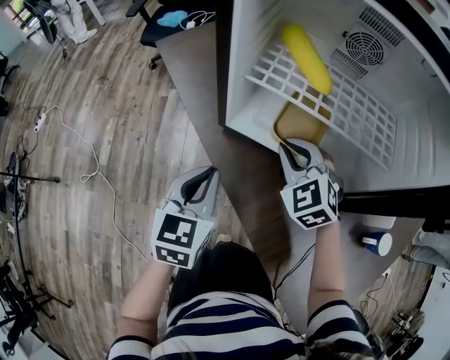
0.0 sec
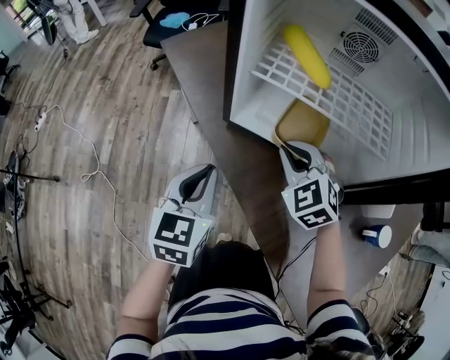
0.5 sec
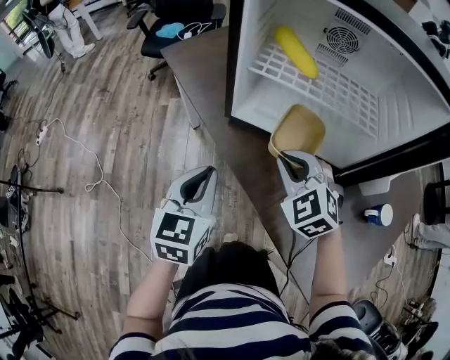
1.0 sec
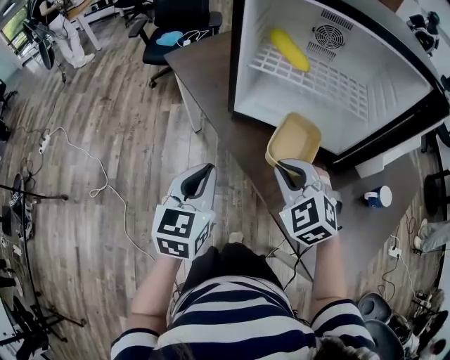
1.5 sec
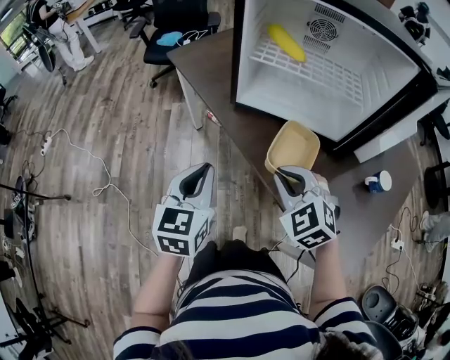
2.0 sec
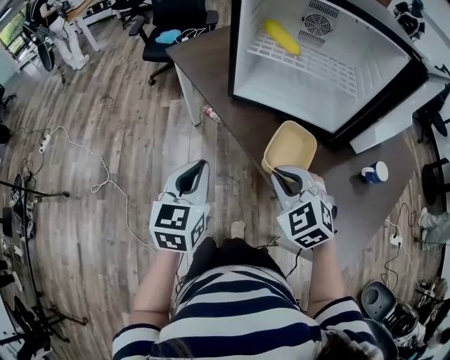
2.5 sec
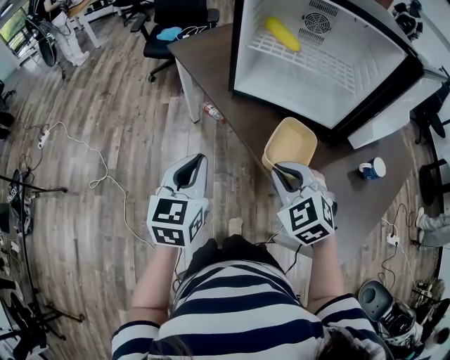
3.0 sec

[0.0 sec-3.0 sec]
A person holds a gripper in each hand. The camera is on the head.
0.0 sec to 1.5 sec: The right gripper is displaced backward by some 20 cm. Meanwhile the left gripper shifts approximately 15 cm backward, upward and to the left.
1.5 sec to 3.0 sec: The grippers both shift backward by approximately 10 cm.

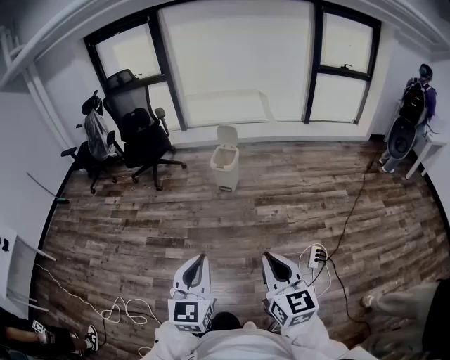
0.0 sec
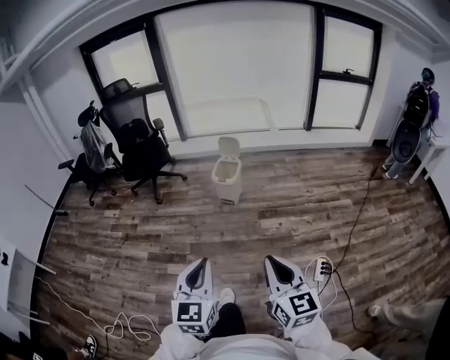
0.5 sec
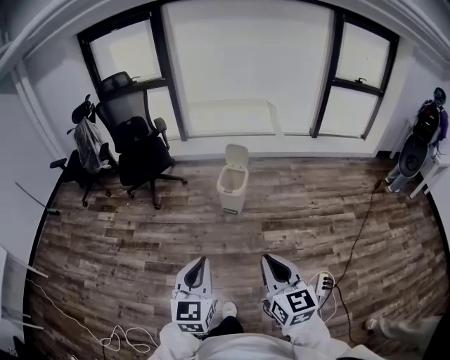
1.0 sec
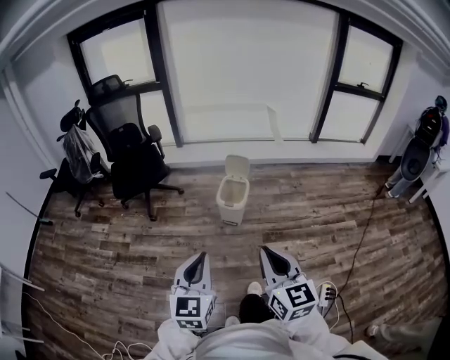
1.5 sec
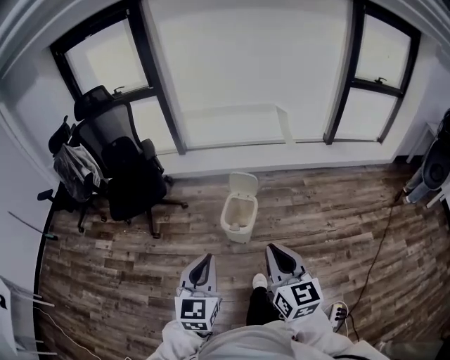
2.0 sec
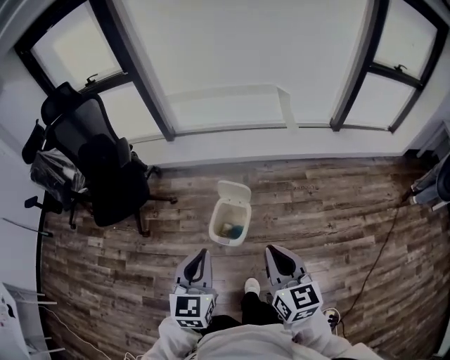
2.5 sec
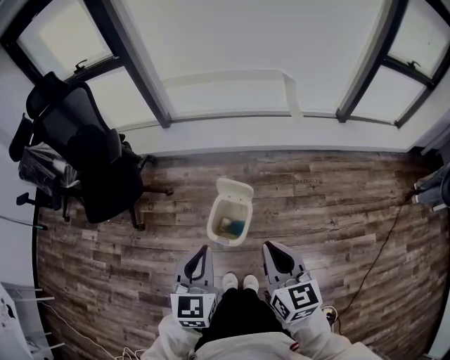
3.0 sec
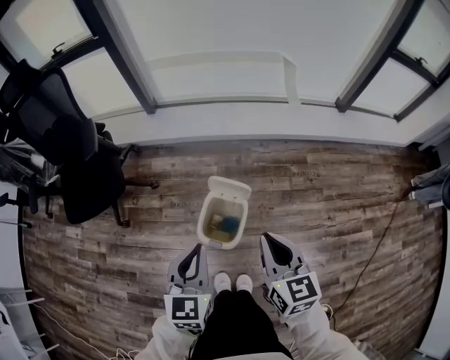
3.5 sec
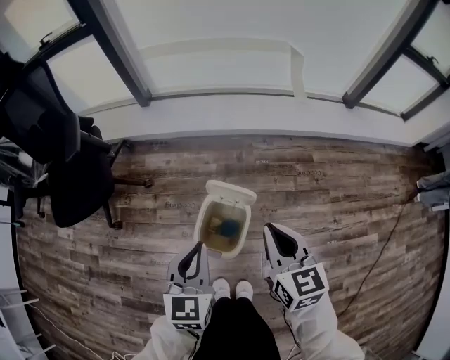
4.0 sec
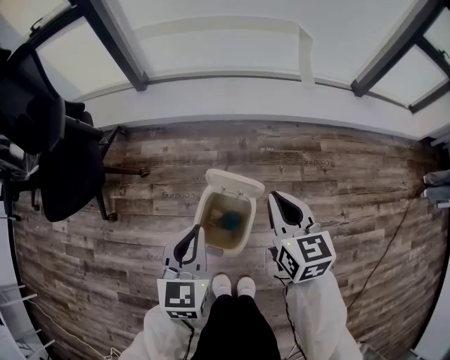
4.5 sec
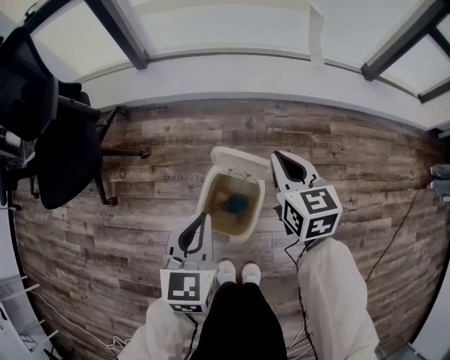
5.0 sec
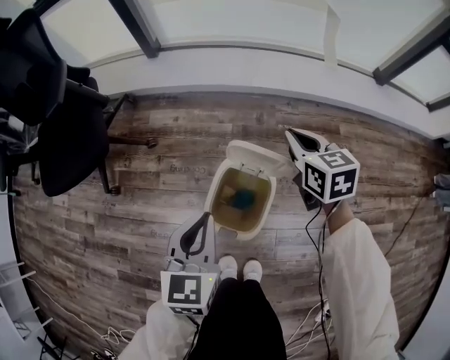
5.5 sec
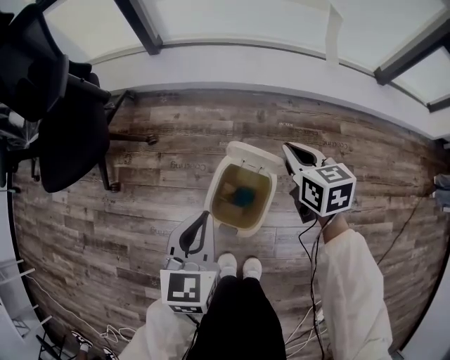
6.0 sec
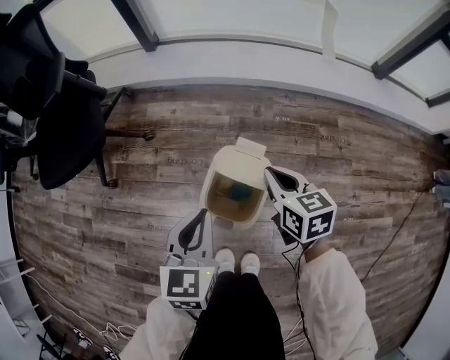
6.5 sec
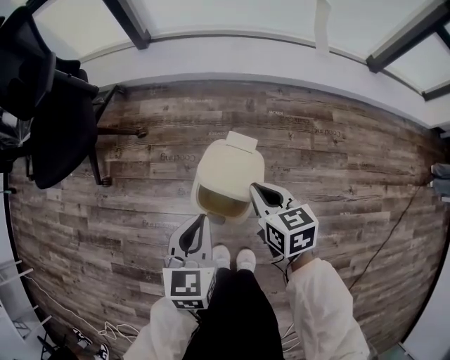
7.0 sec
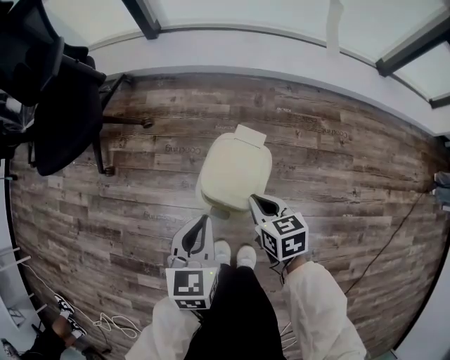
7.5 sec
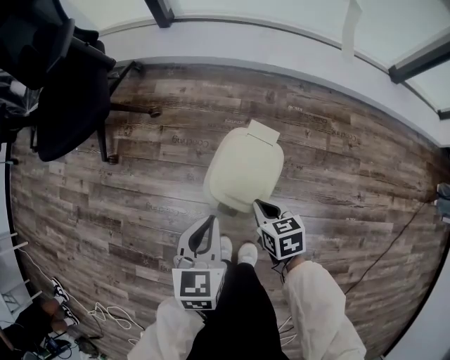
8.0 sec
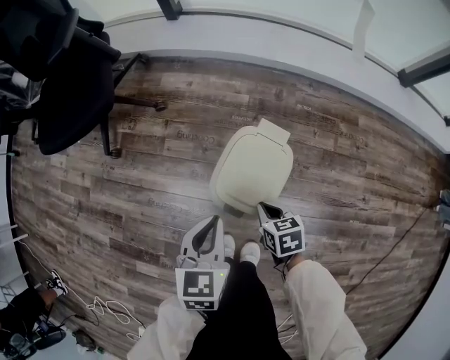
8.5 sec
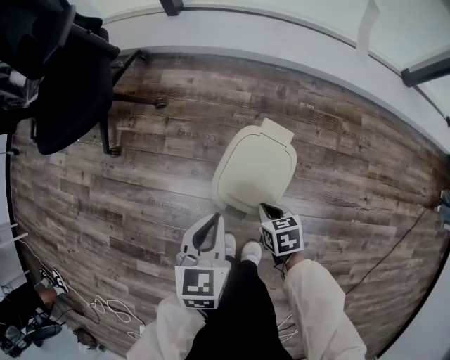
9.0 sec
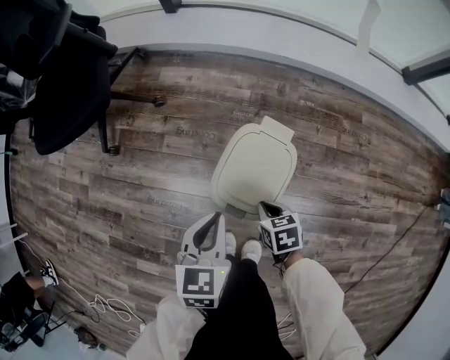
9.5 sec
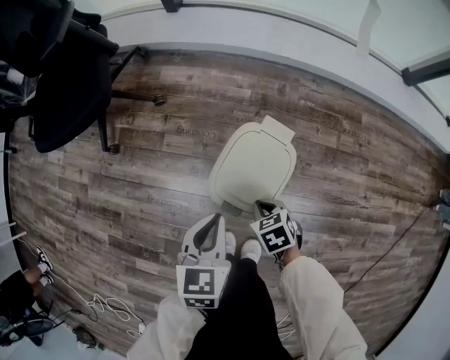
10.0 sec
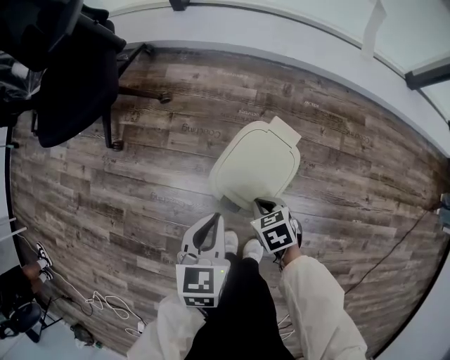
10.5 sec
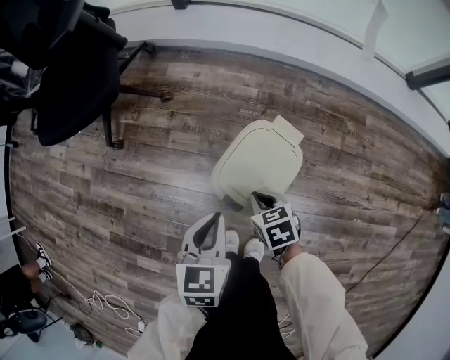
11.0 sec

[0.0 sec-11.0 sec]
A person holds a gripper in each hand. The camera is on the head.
0.0 sec to 2.0 sec: Both grippers are carried forward, about 70 cm.
2.0 sec to 3.5 sec: The grippers both shift forward and downward by approximately 40 cm.
3.5 sec to 5.5 sec: The right gripper goes roughly 35 cm forward and downward. The left gripper moves downward and forward, roughly 25 cm.
5.5 sec to 7.5 sec: The right gripper shifts about 25 cm backward, downward and to the left; the left gripper travels backward and downward by about 10 cm.
7.5 sec to 9.0 sec: The left gripper ends up approximately 5 cm from where it was, while the right gripper travels downward by some 10 cm.
9.0 sec to 11.0 sec: The right gripper ends up approximately 5 cm from where it was.

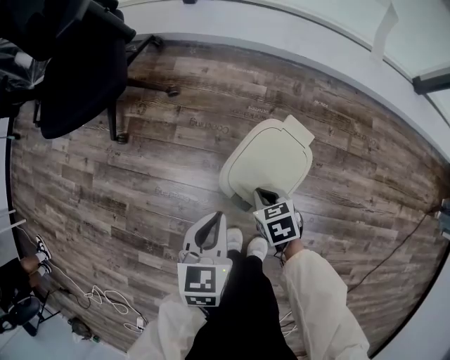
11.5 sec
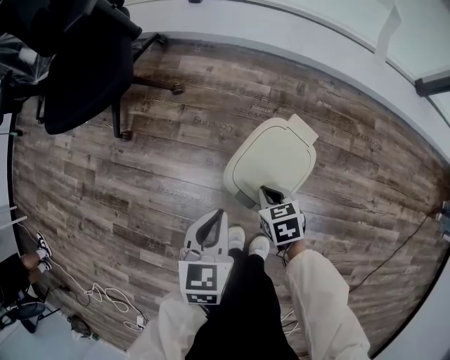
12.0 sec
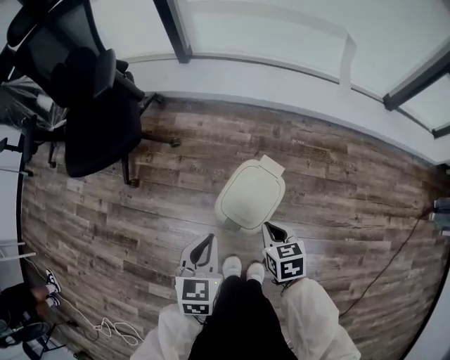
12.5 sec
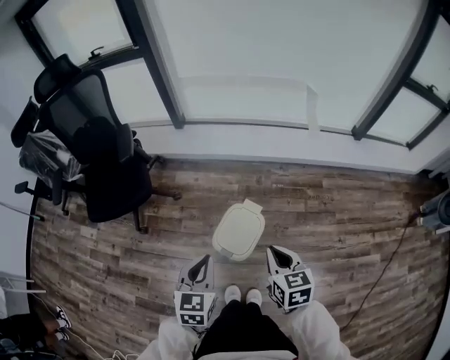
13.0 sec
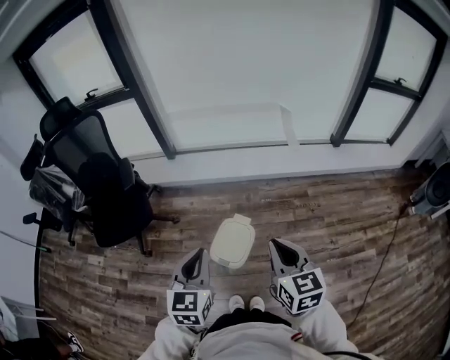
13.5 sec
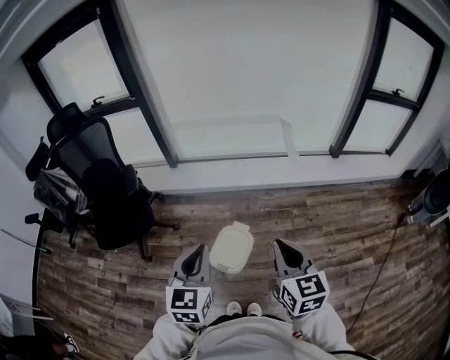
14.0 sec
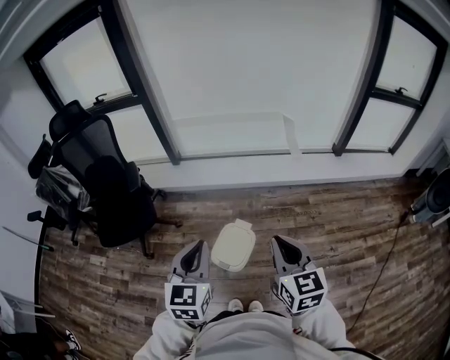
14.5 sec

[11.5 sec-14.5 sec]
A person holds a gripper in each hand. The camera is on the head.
11.5 sec to 13.0 sec: The two grippers go roughly 40 cm upward. The right gripper turns by roughly 40 degrees.
13.0 sec to 14.5 sec: The grippers both shift upward by approximately 25 cm. The right gripper swivels some 20 degrees.

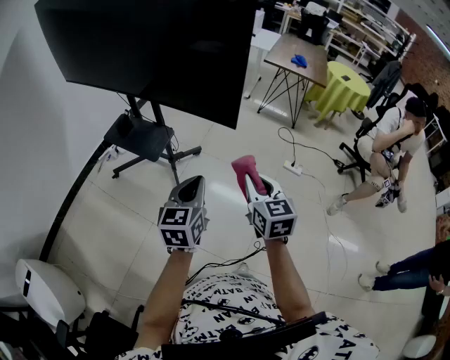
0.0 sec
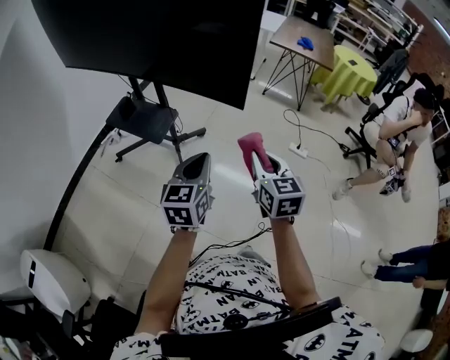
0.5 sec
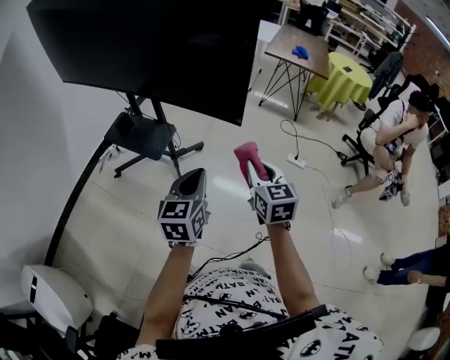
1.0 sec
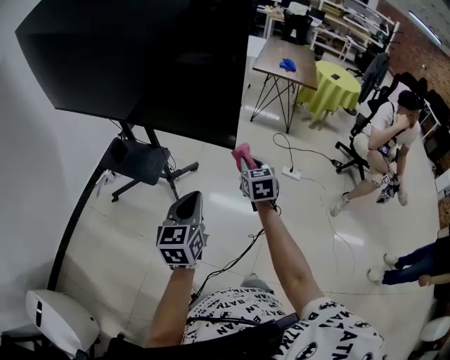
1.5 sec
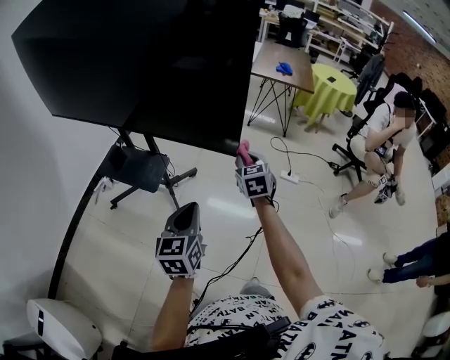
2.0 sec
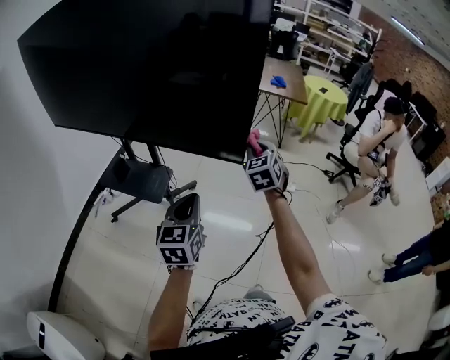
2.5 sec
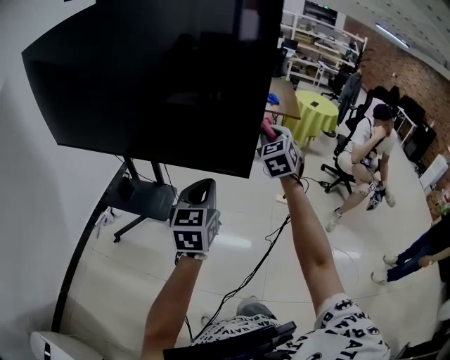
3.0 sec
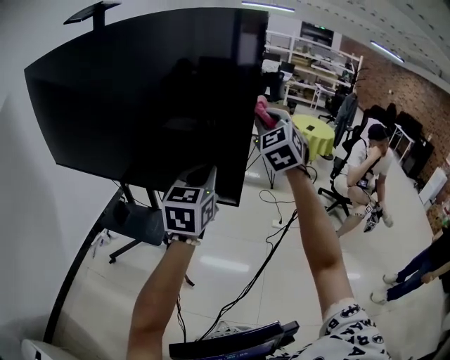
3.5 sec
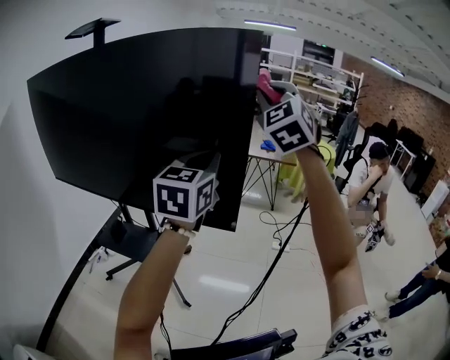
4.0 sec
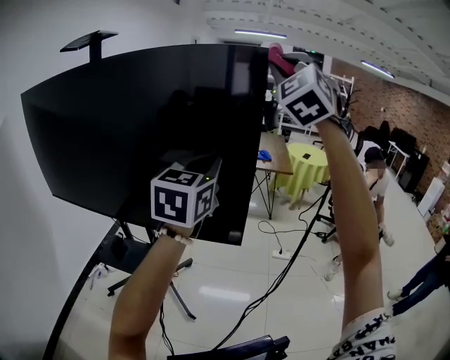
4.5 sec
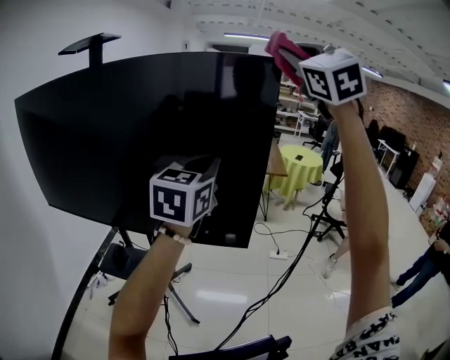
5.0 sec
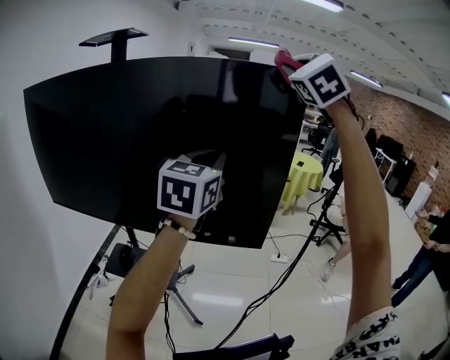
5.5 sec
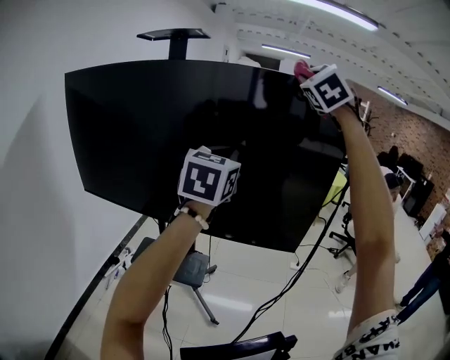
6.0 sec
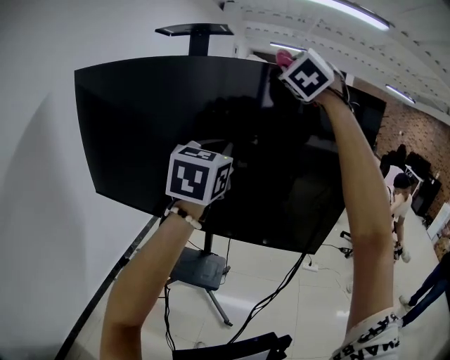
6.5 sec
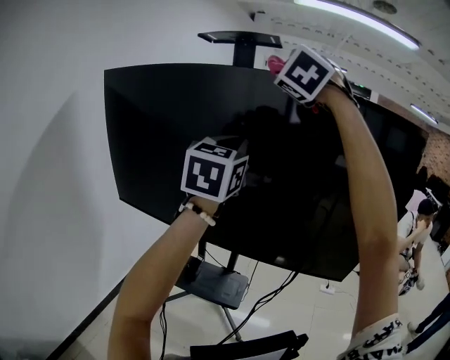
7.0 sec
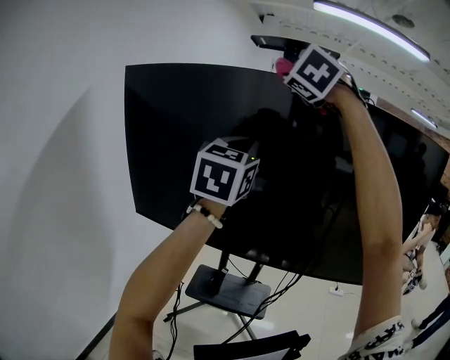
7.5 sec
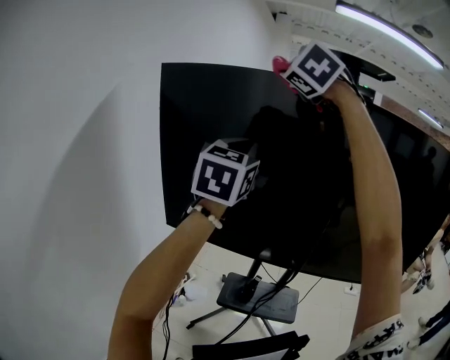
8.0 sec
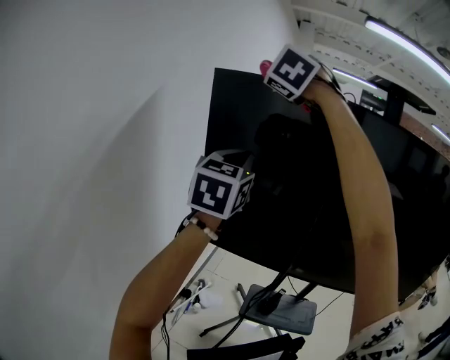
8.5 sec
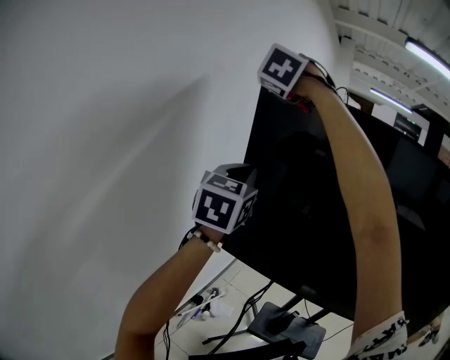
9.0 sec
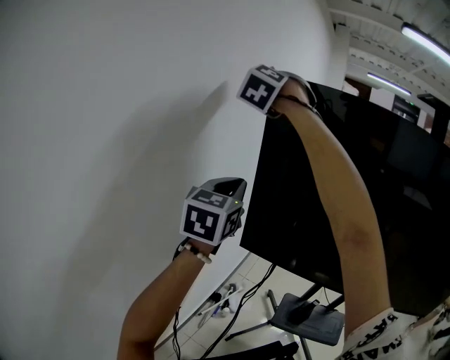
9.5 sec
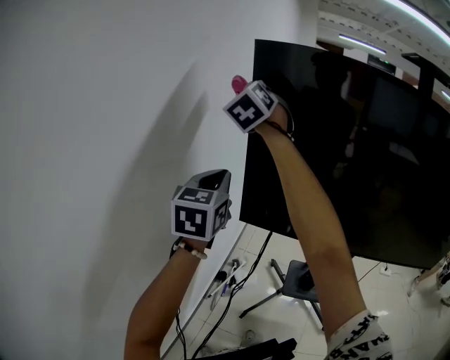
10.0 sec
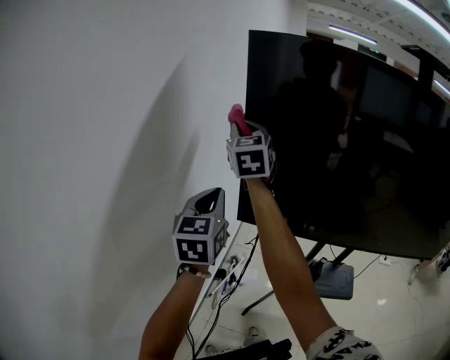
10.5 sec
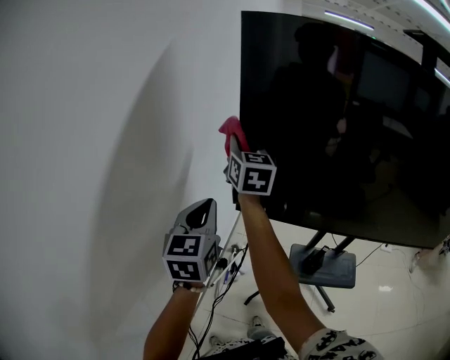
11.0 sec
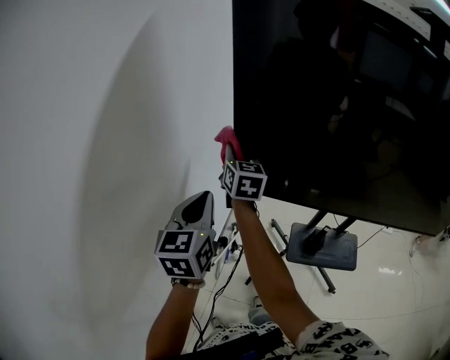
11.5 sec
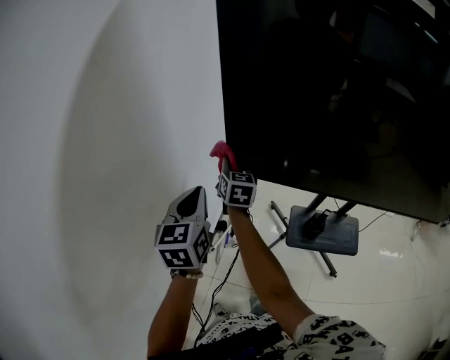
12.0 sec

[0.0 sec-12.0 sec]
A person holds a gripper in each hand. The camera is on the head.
0.0 sec to 2.0 sec: The right gripper moves forward, approximately 20 cm. Meanwhile the left gripper changes place by about 5 cm.
2.0 sec to 4.0 sec: The left gripper moves upward and forward, about 35 cm, and rotates roughly 30 degrees. The right gripper goes roughly 50 cm upward, and points its fingers some 30 degrees further upward.
4.0 sec to 6.0 sec: The right gripper is displaced to the left and upward by some 25 cm; the left gripper shifts roughly 25 cm to the left.
6.0 sec to 8.0 sec: The pair of grippers is taken to the left, approximately 60 cm. The right gripper rotates about 20 degrees.
8.0 sec to 10.0 sec: Both grippers move to the left and downward, some 40 cm.
10.0 sec to 12.0 sec: The left gripper travels downward by approximately 20 cm; the right gripper travels downward by some 40 cm, and rolls clockwise, seen from behind, by approximately 60 degrees.
